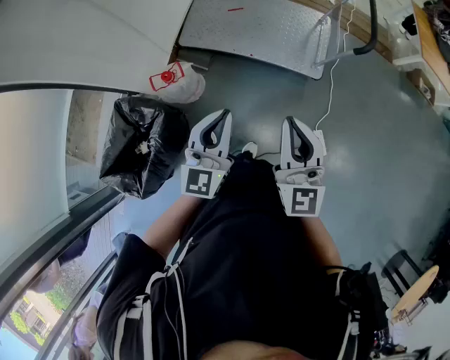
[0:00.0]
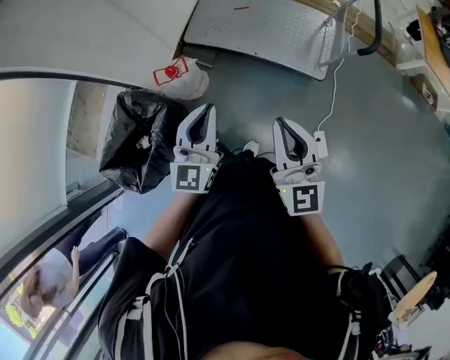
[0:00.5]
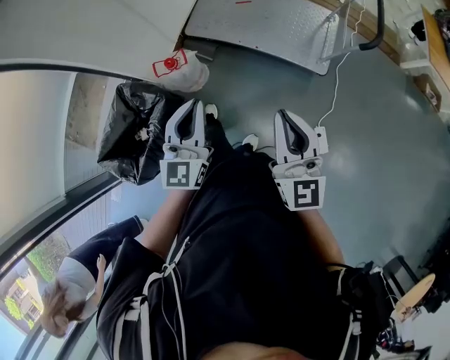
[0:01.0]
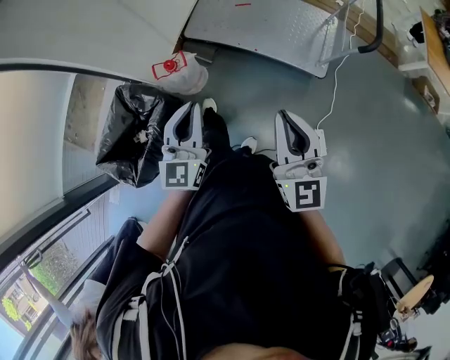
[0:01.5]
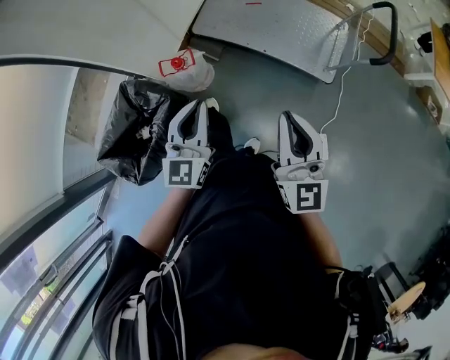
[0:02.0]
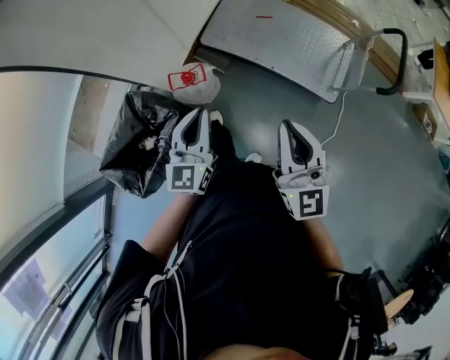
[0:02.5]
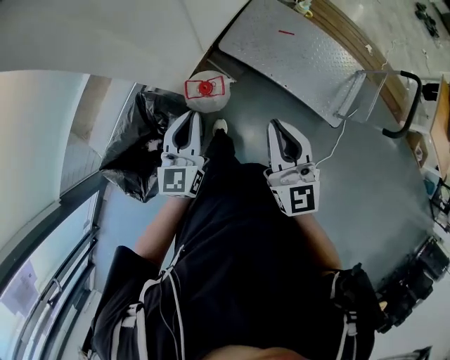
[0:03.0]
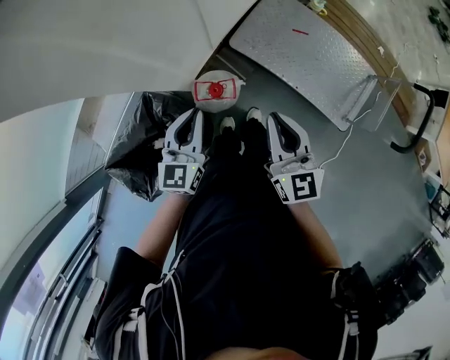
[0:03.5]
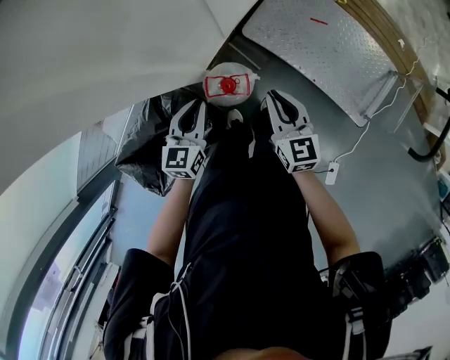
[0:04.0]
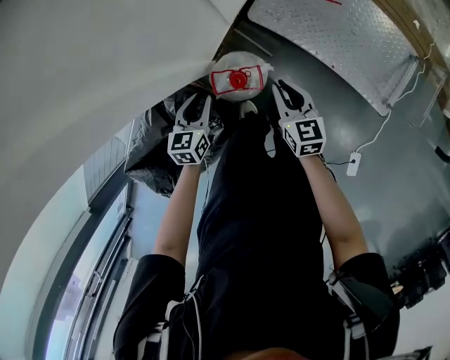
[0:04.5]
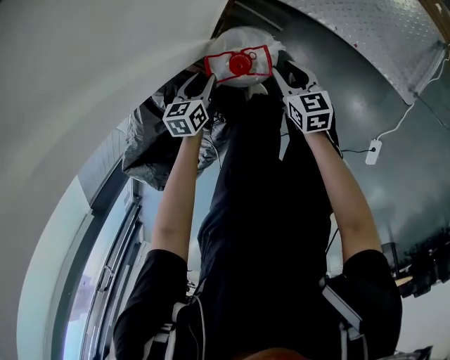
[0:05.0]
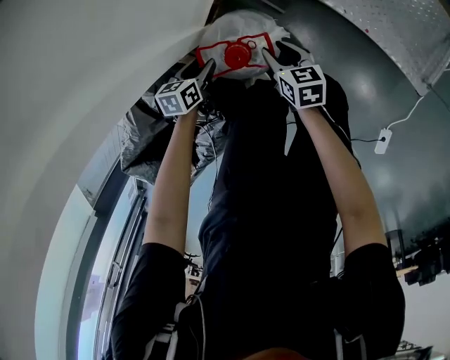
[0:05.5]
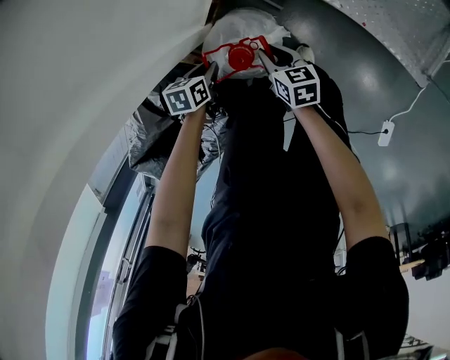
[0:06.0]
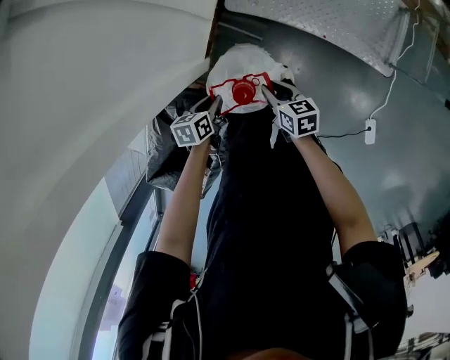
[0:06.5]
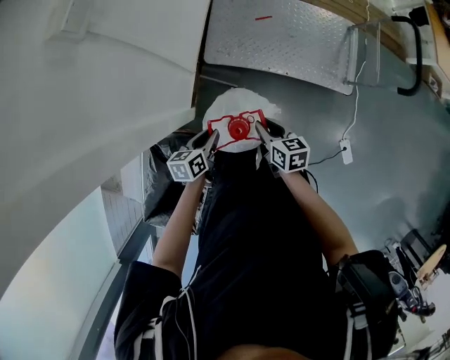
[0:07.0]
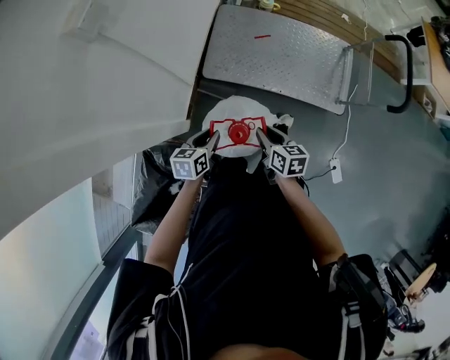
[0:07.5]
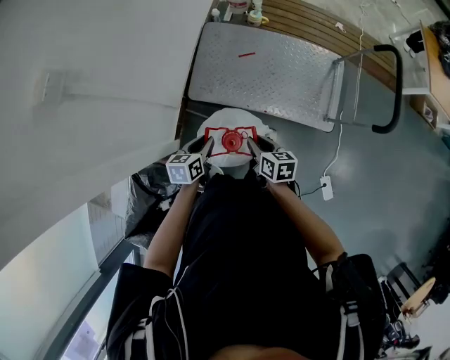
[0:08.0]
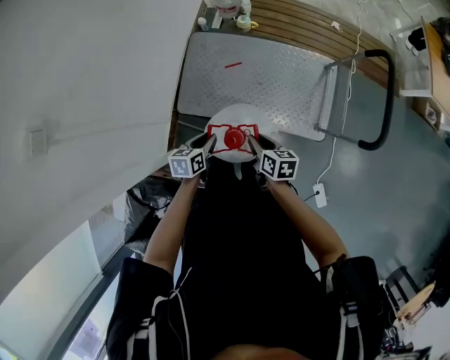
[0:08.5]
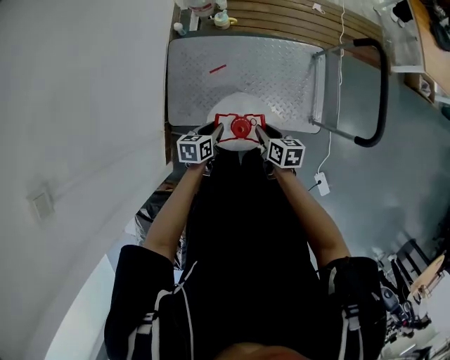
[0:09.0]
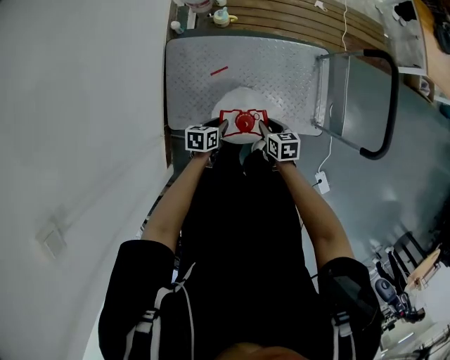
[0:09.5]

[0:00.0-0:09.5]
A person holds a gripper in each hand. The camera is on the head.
0:00.0 to 0:02.0: The left gripper is displaced to the left by some 10 cm.
0:02.0 to 0:04.0: Both grippers are carried forward and to the left, about 40 cm. The two grippers go about 20 cm downward. The right gripper turns by about 30 degrees. Meanwhile the left gripper turns by about 30 degrees.
0:04.0 to 0:05.5: Both grippers travel together downward, some 40 cm. The right gripper turns by about 30 degrees, and opens. The left gripper angles its fingers downward, by approximately 30 degrees, and opens its fingers.
0:05.5 to 0:07.5: Both grippers travel together upward and to the right, about 40 cm. The left gripper rotates roughly 20 degrees, and closes up, while the right gripper rotates about 30 degrees.
0:07.5 to 0:09.5: Both grippers are carried forward and to the right, about 50 cm. The left gripper rotates roughly 20 degrees.

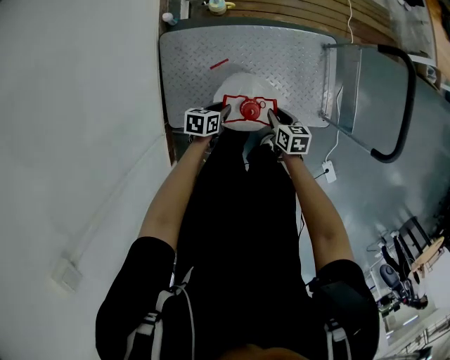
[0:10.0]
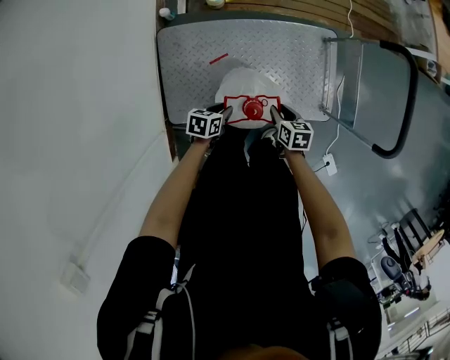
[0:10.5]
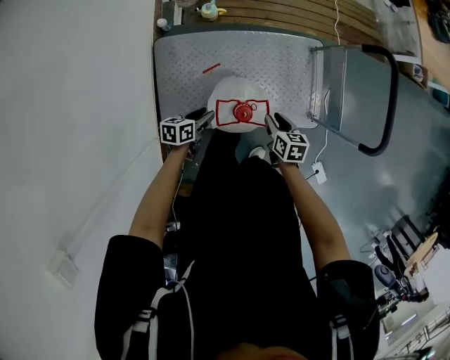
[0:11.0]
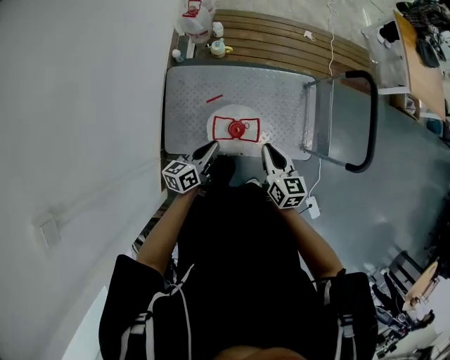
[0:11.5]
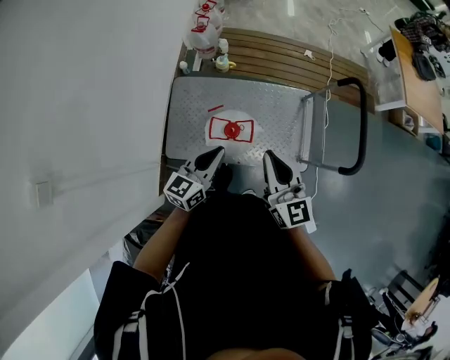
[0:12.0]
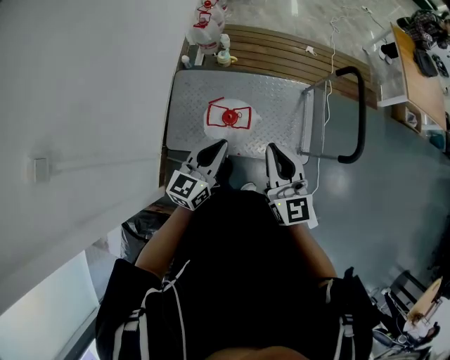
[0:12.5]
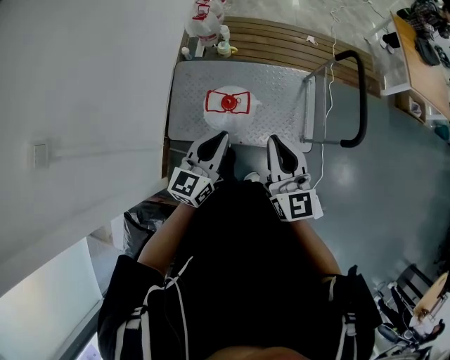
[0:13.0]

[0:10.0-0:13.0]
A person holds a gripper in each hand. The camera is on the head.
0:10.0 to 0:11.5: The grippers both shift upward by some 25 cm. The right gripper turns by approximately 30 degrees; the left gripper angles its fingers upward, by about 30 degrees.
0:11.5 to 0:13.0: The right gripper goes some 25 cm upward and backward, and turns by approximately 30 degrees. The left gripper heads upward, to the right and backward, covering about 25 cm, and rotates some 40 degrees.

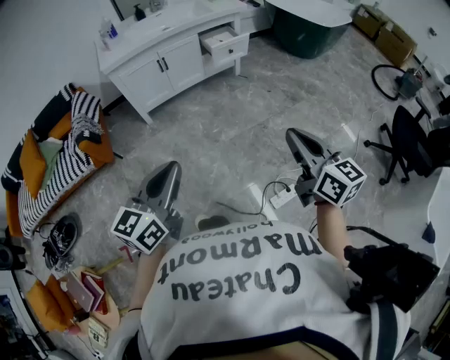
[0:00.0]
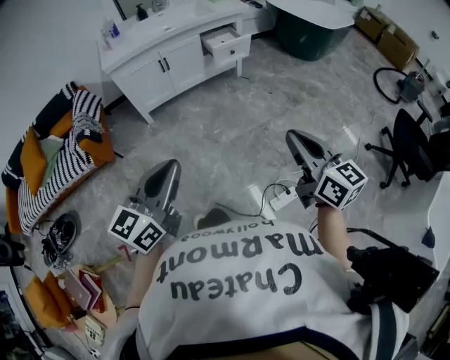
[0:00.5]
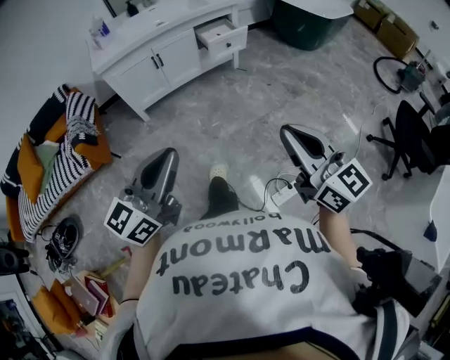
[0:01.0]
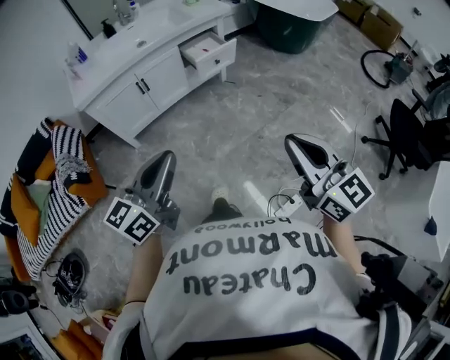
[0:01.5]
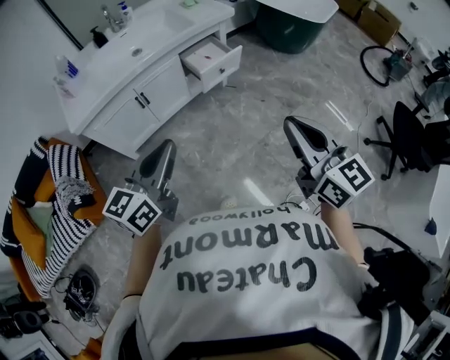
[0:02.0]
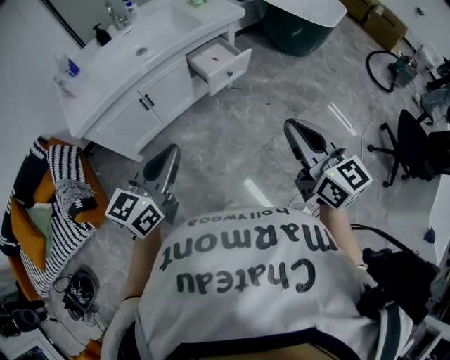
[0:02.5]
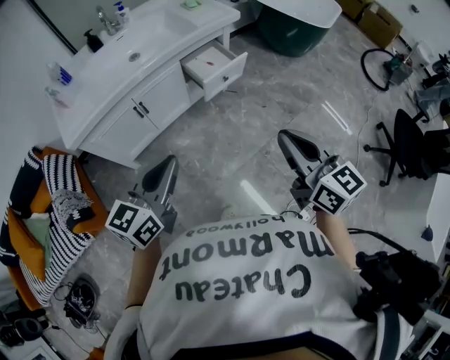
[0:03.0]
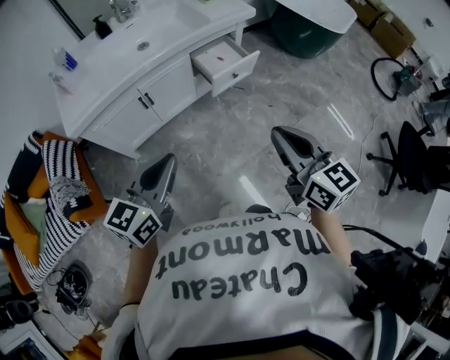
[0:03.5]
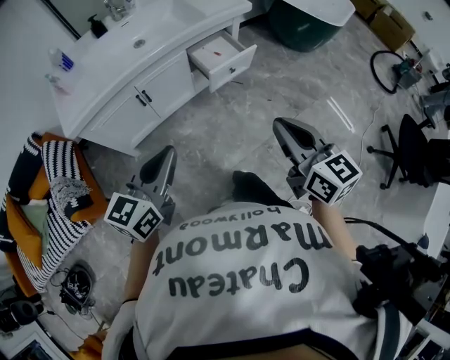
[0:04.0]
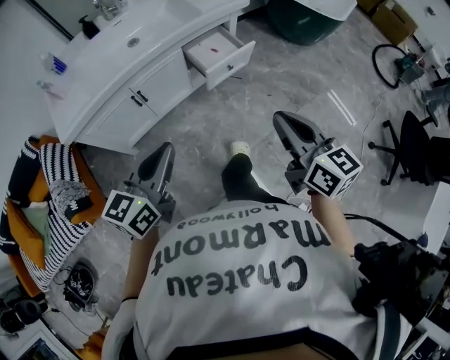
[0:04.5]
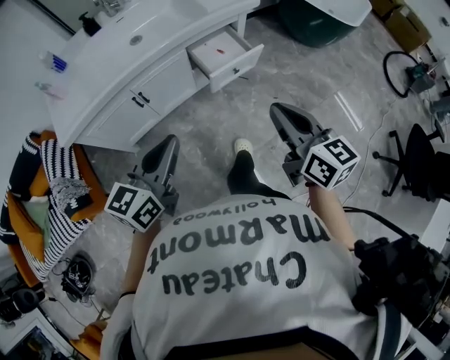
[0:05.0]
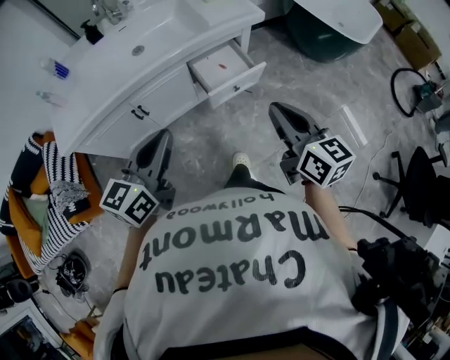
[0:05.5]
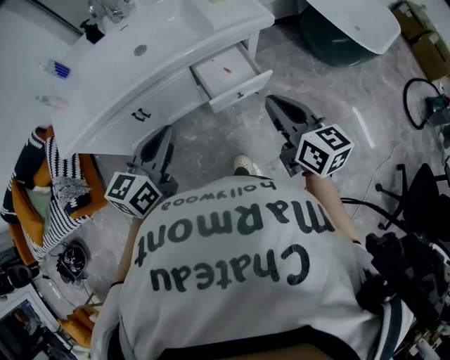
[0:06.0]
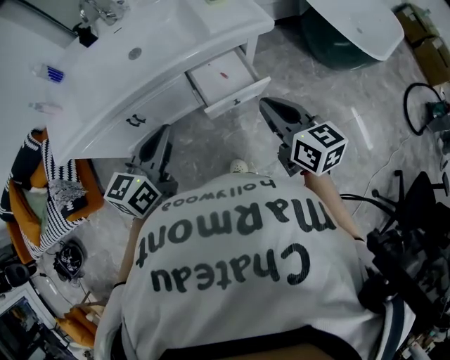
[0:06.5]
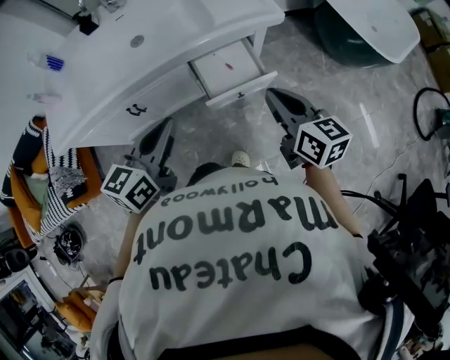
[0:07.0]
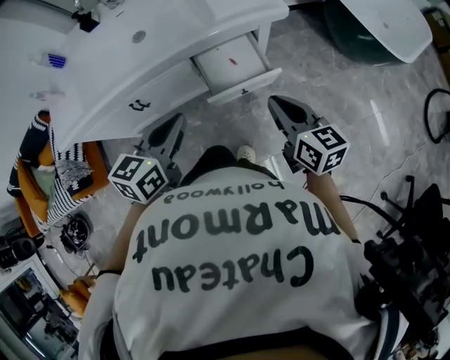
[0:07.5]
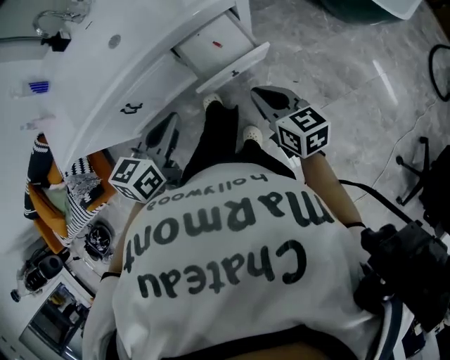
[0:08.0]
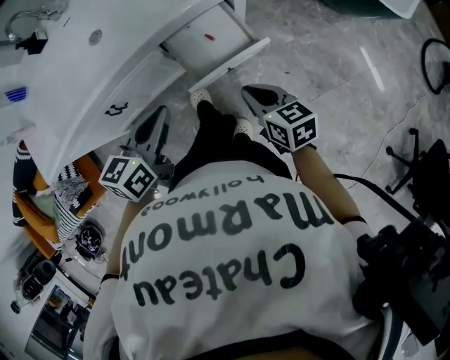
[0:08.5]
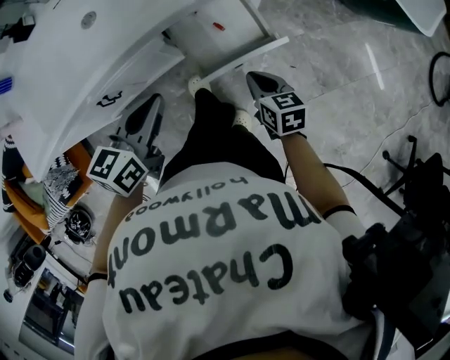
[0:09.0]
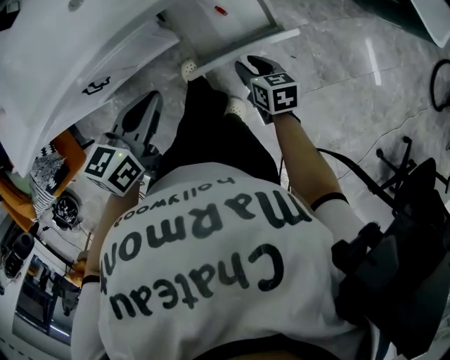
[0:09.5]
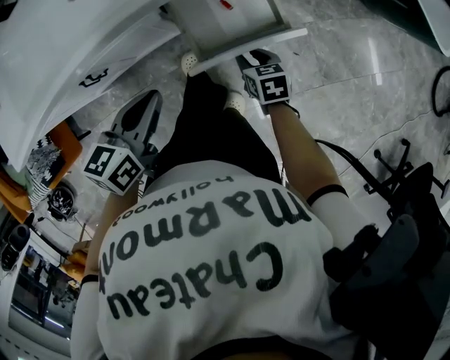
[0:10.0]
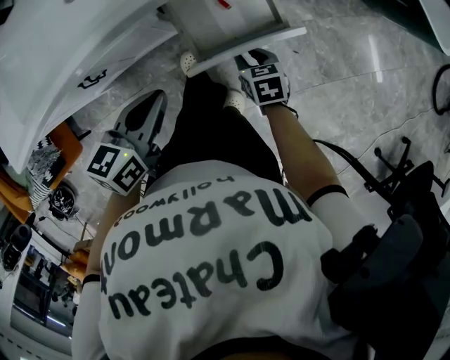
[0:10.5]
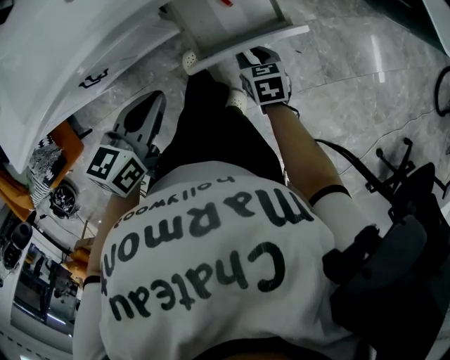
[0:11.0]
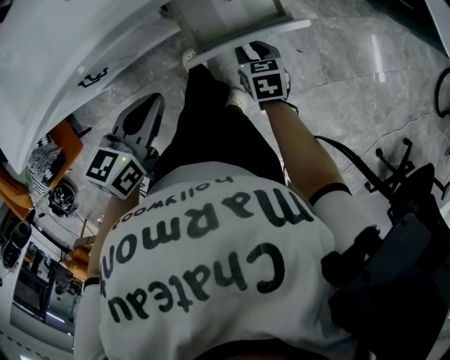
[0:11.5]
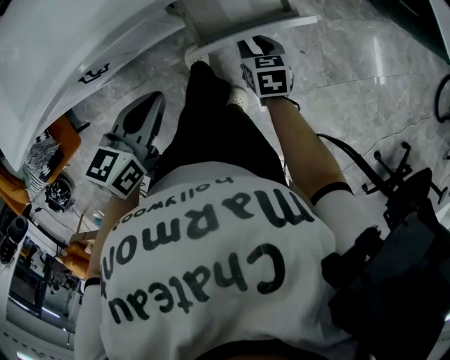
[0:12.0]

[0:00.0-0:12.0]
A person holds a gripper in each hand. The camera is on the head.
0:00.0 to 0:02.0: The two grippers go some 35 cm forward.
0:02.0 to 0:04.0: The left gripper is displaced forward by approximately 5 cm. The right gripper heads forward, downward and to the left, covering some 15 cm.
0:04.0 to 0:06.0: The grippers both shift forward by about 25 cm.
0:06.0 to 0:08.0: The left gripper moves downward, forward and to the right, some 15 cm; the right gripper heads downward, covering about 15 cm.
0:08.0 to 0:10.0: The right gripper travels downward by roughly 25 cm, turns by about 30 degrees, and opens up. Meanwhile the left gripper heads downward and forward, covering approximately 15 cm.
0:10.0 to 0:12.0: The grippers make only small movements.

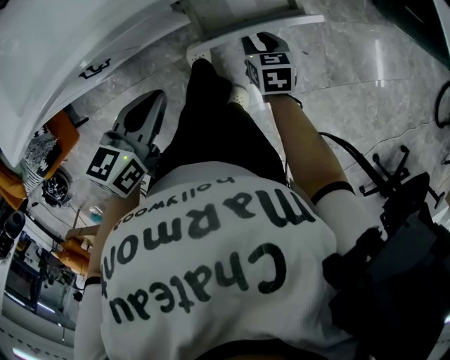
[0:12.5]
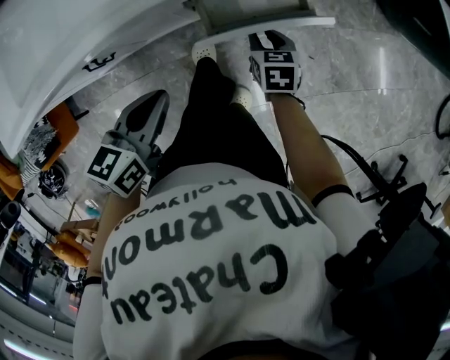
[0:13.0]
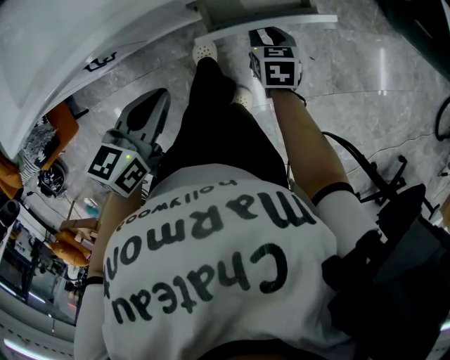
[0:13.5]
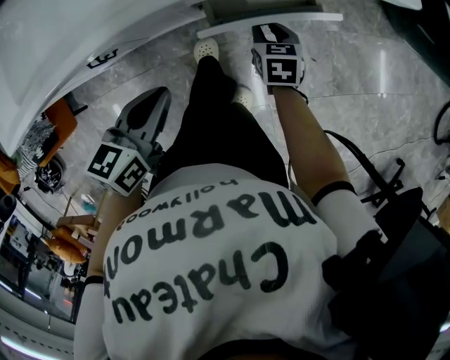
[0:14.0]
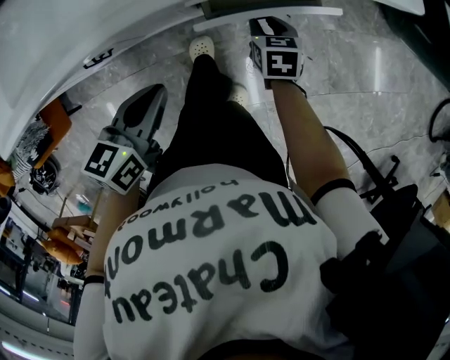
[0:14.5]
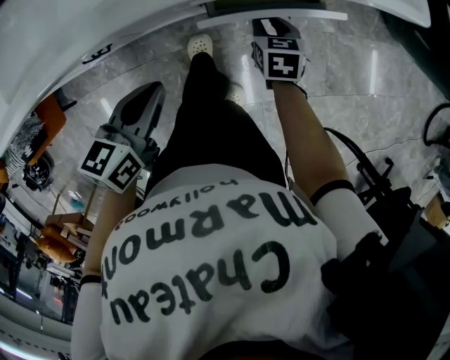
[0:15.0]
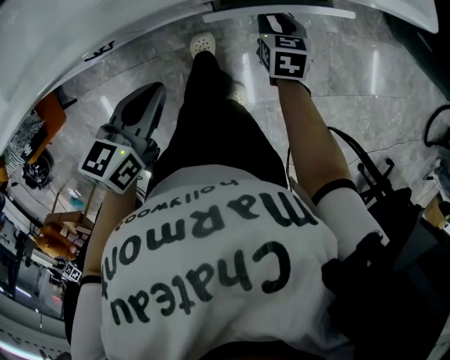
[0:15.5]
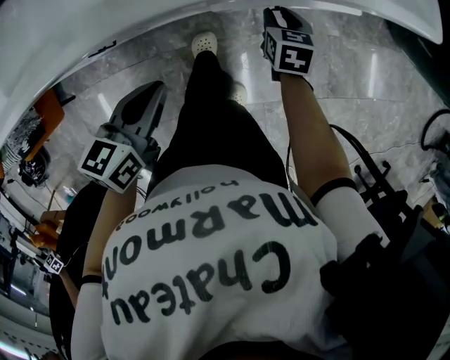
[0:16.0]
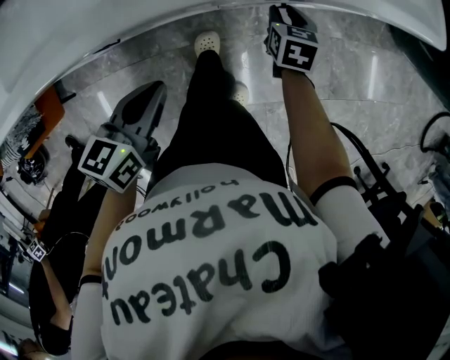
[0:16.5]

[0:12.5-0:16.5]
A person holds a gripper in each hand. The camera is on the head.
0:12.5 to 0:14.5: The right gripper moves forward, about 5 cm.
0:14.5 to 0:16.5: There are only small adjustments of the grippers.
